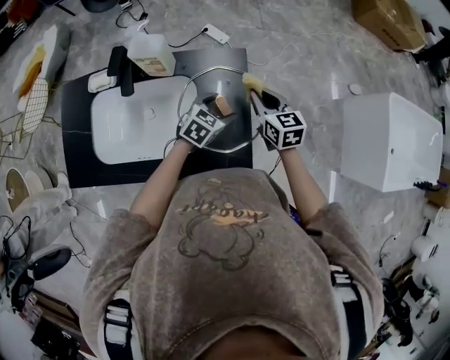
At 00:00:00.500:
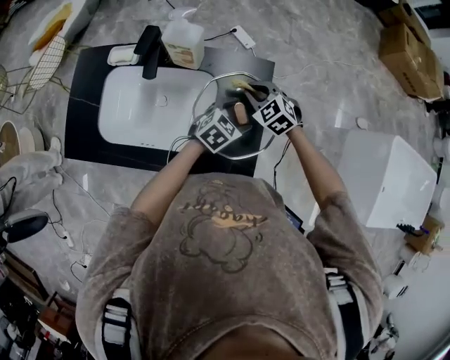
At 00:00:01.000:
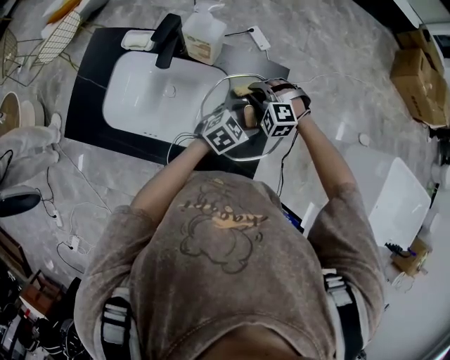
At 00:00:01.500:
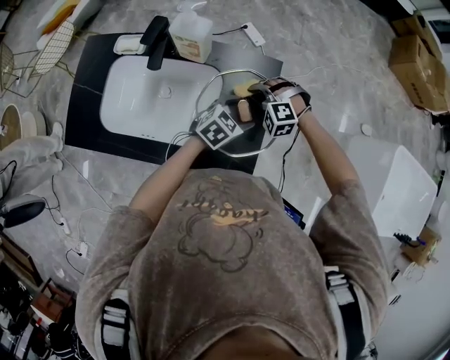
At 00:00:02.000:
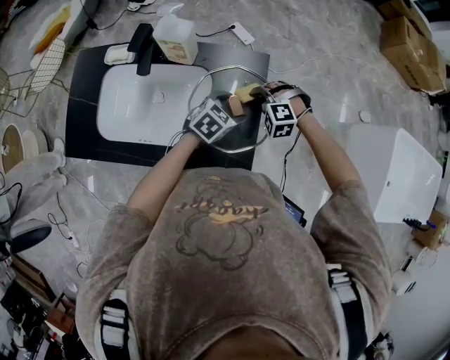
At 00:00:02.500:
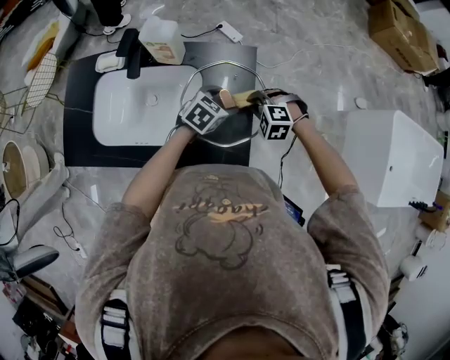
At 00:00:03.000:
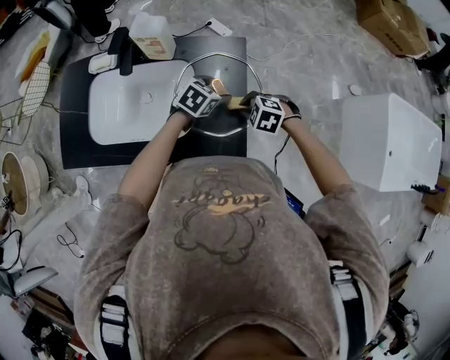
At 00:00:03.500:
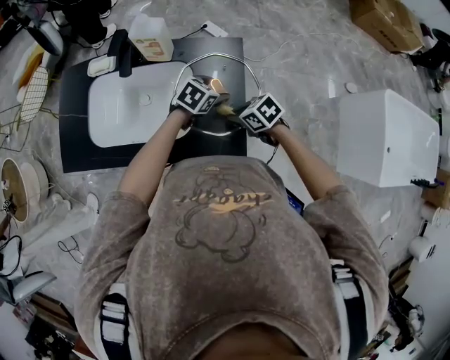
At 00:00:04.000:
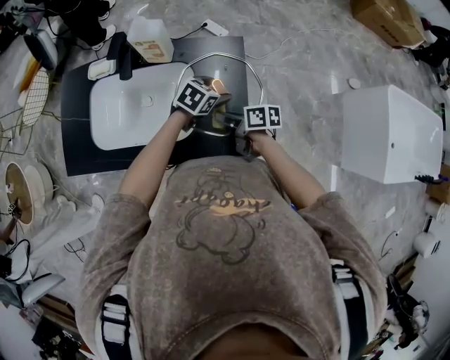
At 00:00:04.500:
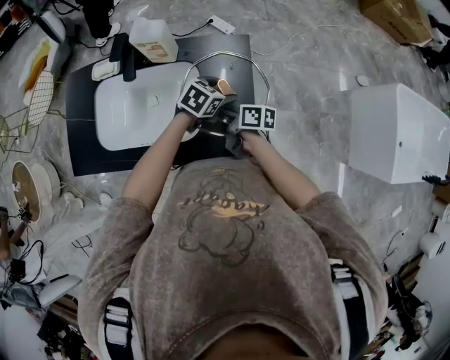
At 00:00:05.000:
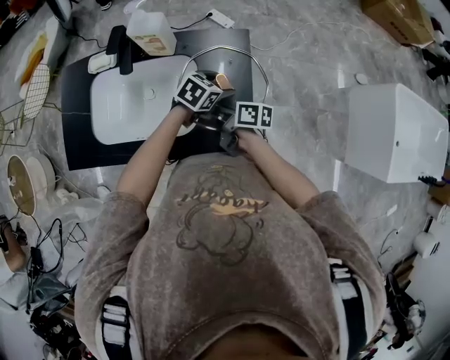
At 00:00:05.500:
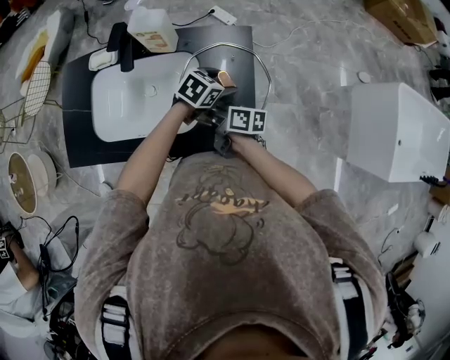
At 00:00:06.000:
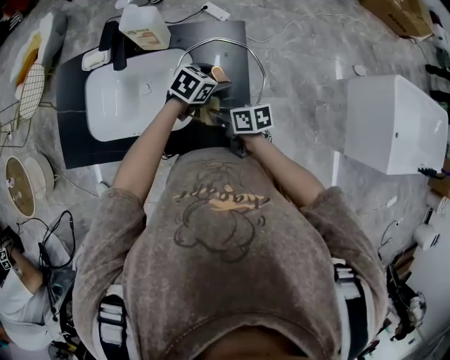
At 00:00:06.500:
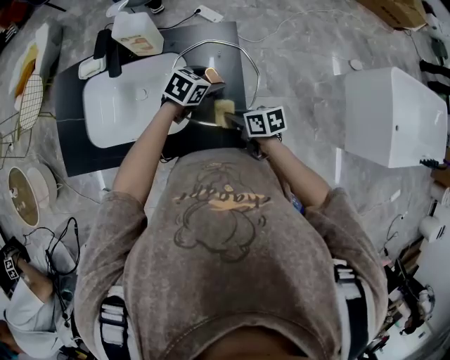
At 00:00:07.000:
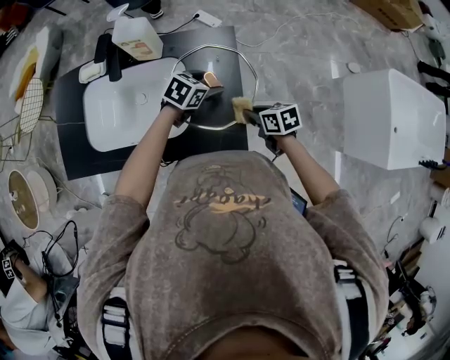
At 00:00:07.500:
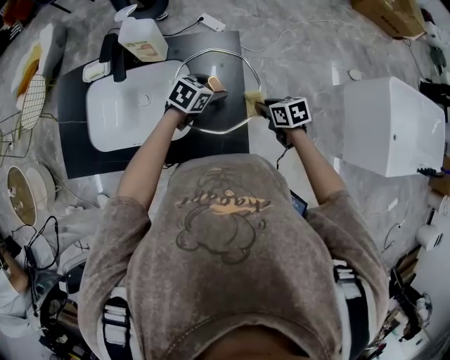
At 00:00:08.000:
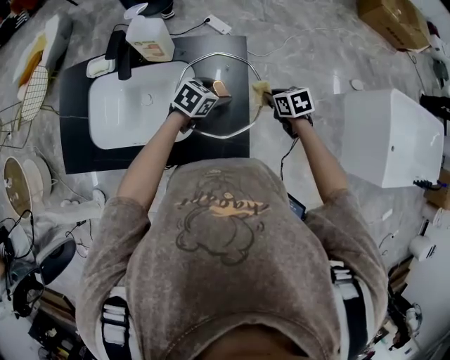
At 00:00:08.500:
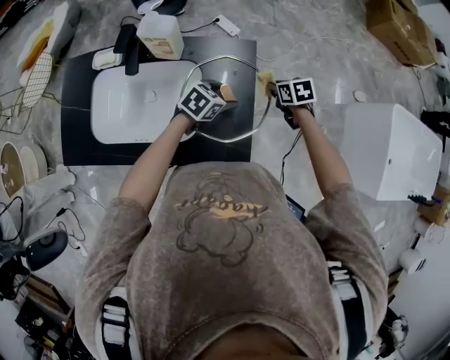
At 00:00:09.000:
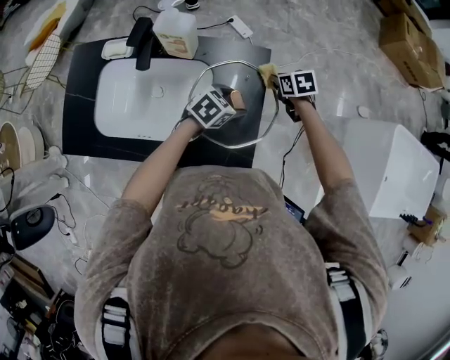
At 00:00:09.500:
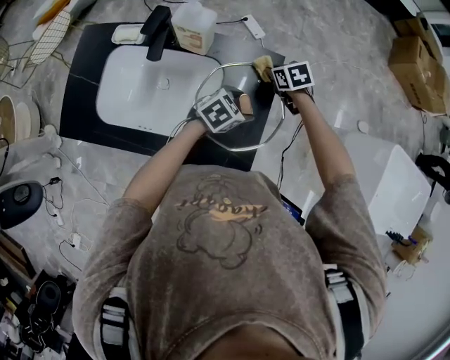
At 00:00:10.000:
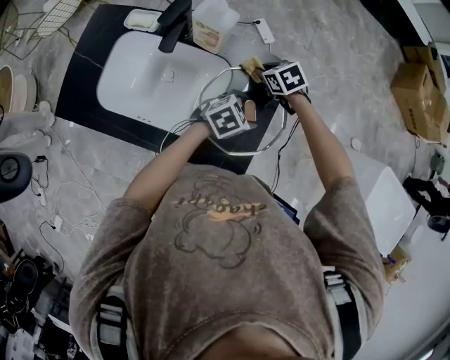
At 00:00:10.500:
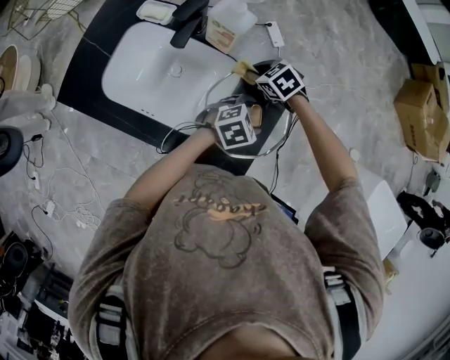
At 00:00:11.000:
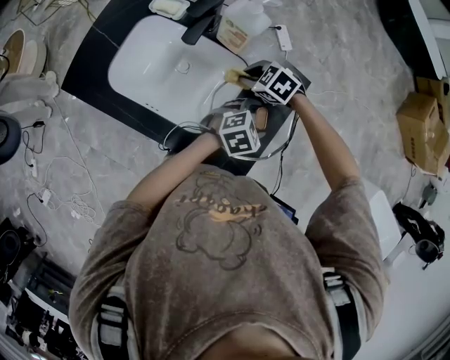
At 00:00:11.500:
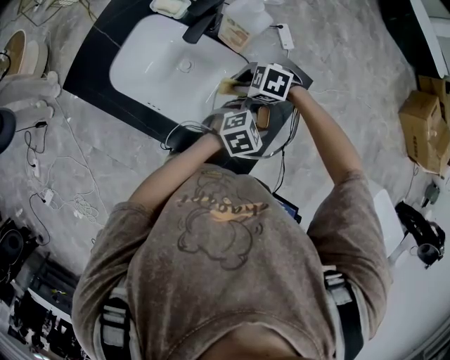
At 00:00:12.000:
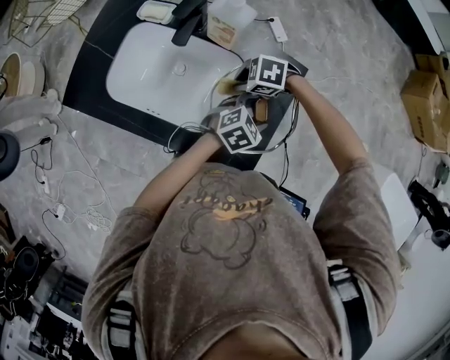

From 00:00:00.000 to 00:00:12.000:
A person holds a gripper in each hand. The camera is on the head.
From 00:00:00.000 to 00:00:02.000: The right gripper goes approximately 10 cm downward, and rolls counterclockwise, seen from behind, by approximately 90 degrees.
From 00:00:02.000 to 00:00:04.000: The right gripper shifts by approximately 10 cm, and rotates around the line of its fingers by about 120 degrees, clockwise from behind.
From 00:00:04.000 to 00:00:06.000: The grippers move only a little.
From 00:00:06.000 to 00:00:08.000: The right gripper ends up about 20 cm from where it was, and rotates about 30 degrees.
From 00:00:08.000 to 00:00:10.000: The right gripper moves about 25 cm, and turns by approximately 30 degrees.
From 00:00:10.000 to 00:00:12.000: The right gripper shifts by about 15 cm, and swivels about 60 degrees.

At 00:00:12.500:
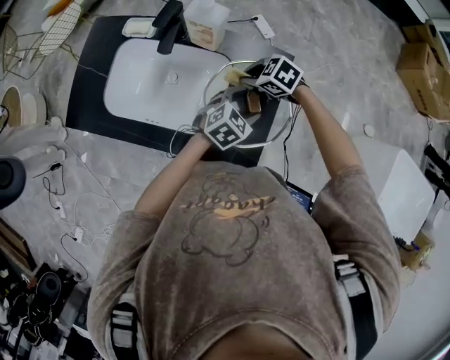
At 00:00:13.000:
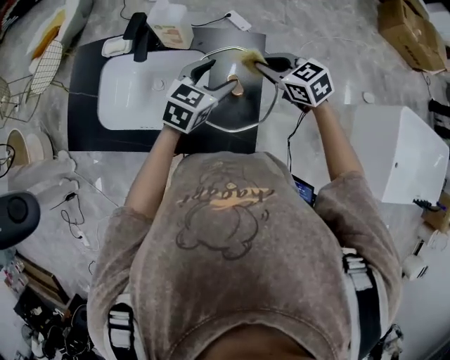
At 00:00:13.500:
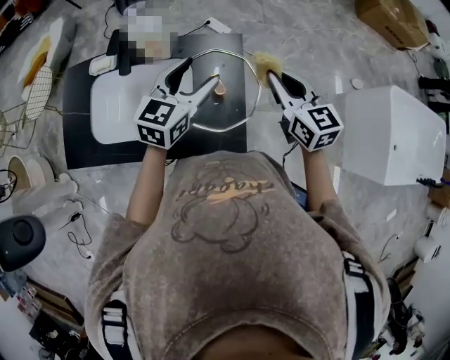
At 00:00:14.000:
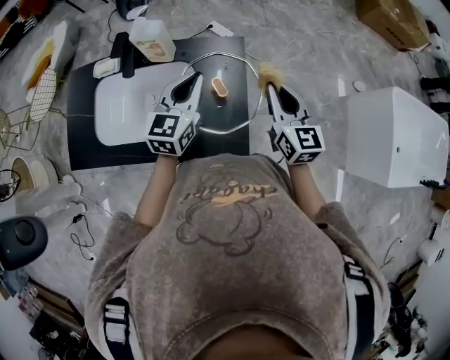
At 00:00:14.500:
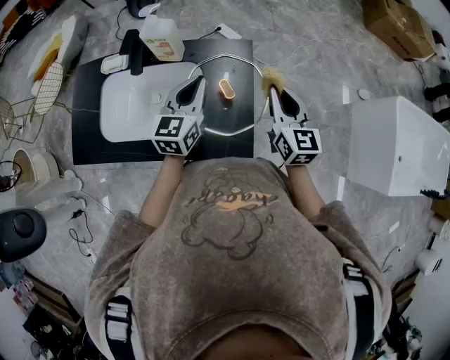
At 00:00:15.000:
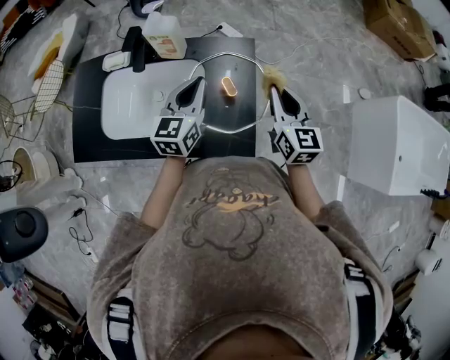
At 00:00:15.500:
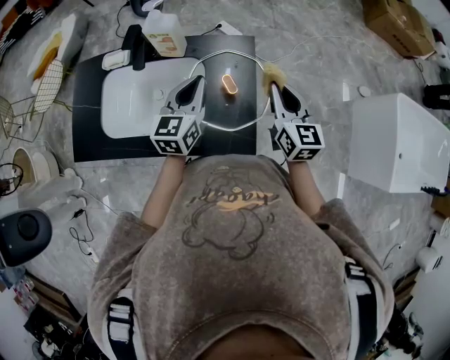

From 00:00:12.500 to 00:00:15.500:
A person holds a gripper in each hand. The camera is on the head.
From 00:00:12.500 to 00:00:14.000: The right gripper changes place by some 30 cm, and points its fingers roughly 50 degrees further upward; the left gripper moves upward, about 15 cm, tilts its fingers approximately 30 degrees upward, and closes up.
From 00:00:14.000 to 00:00:15.500: The grippers move only a little.

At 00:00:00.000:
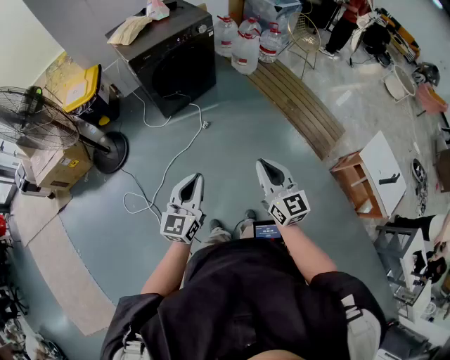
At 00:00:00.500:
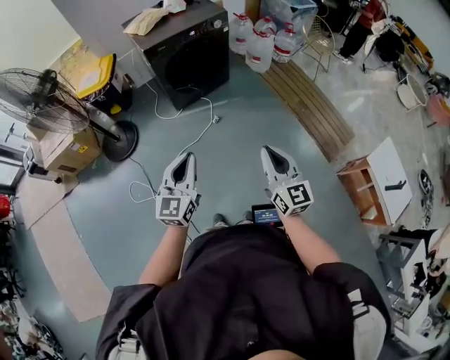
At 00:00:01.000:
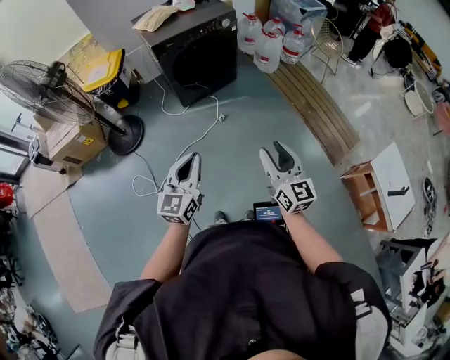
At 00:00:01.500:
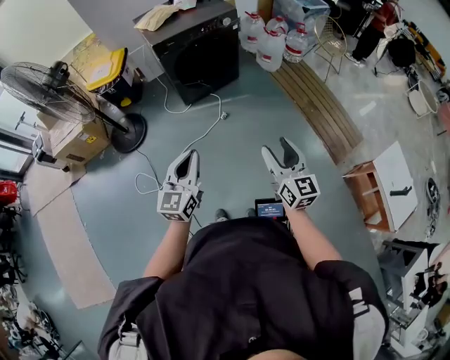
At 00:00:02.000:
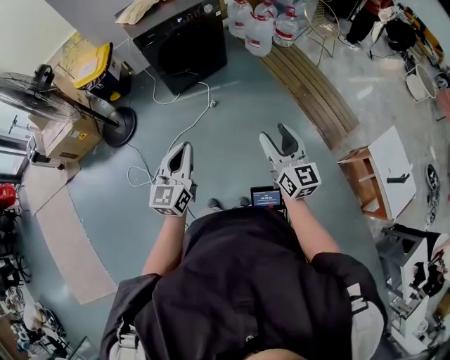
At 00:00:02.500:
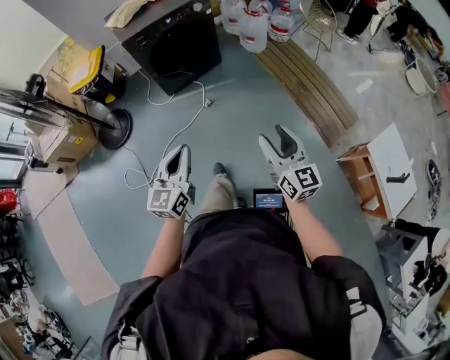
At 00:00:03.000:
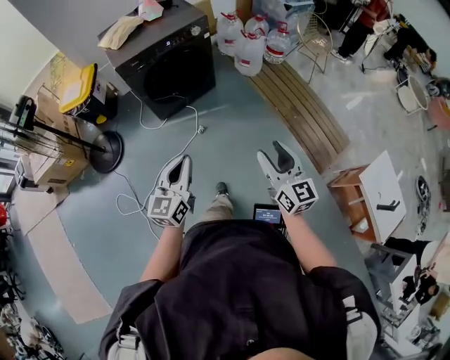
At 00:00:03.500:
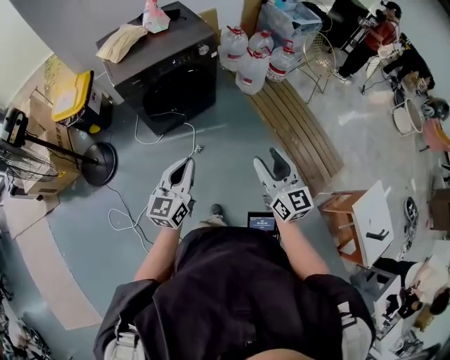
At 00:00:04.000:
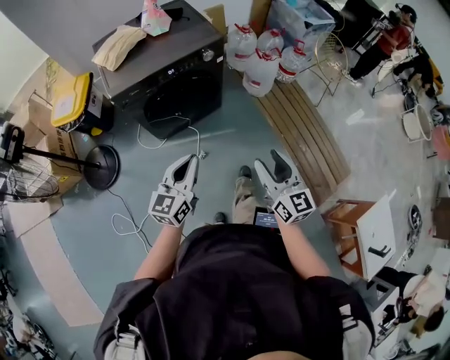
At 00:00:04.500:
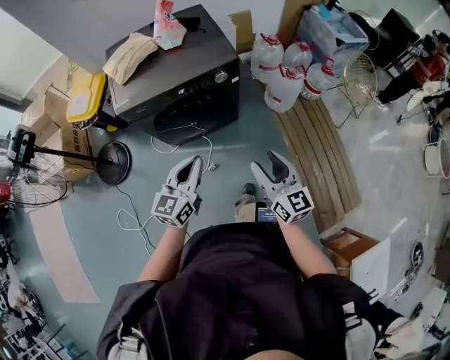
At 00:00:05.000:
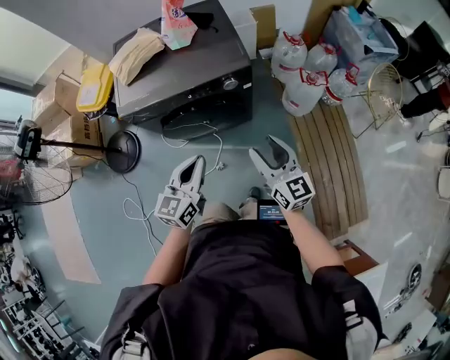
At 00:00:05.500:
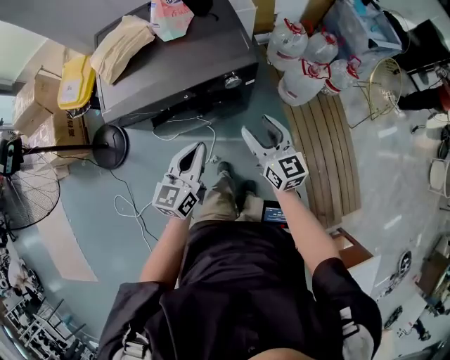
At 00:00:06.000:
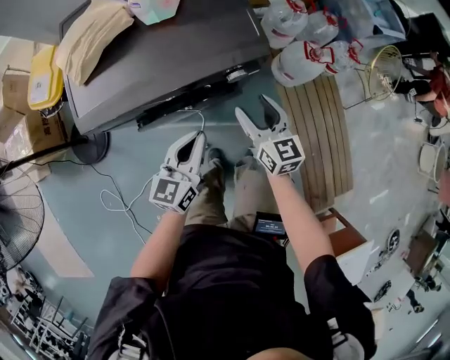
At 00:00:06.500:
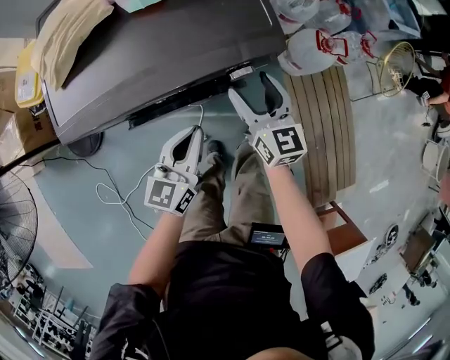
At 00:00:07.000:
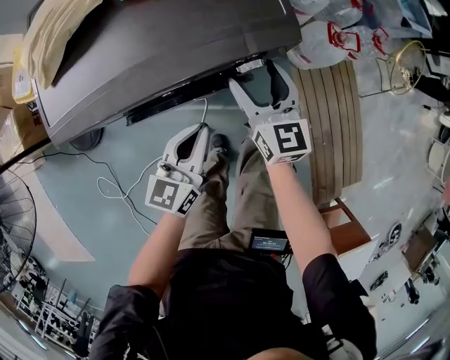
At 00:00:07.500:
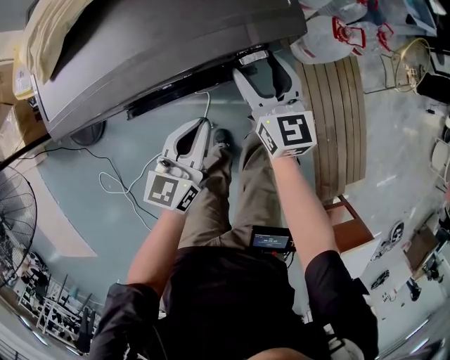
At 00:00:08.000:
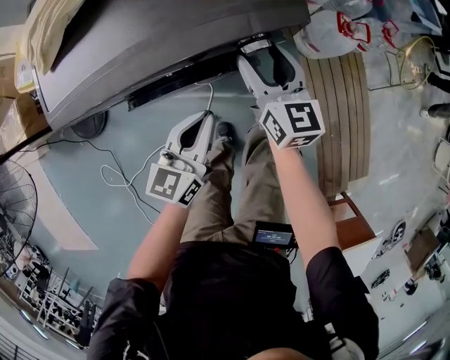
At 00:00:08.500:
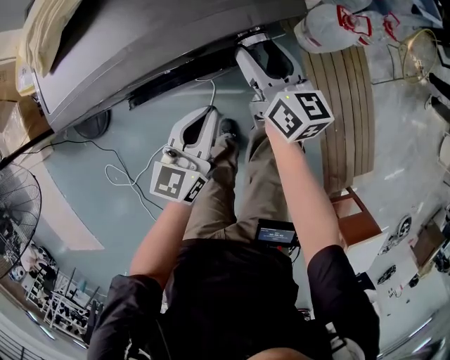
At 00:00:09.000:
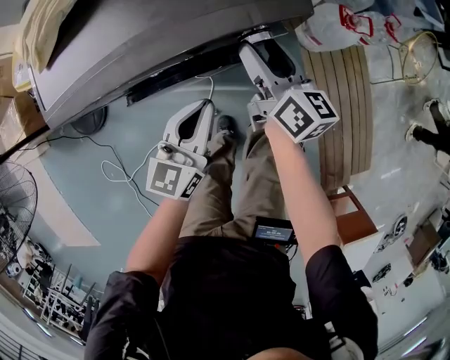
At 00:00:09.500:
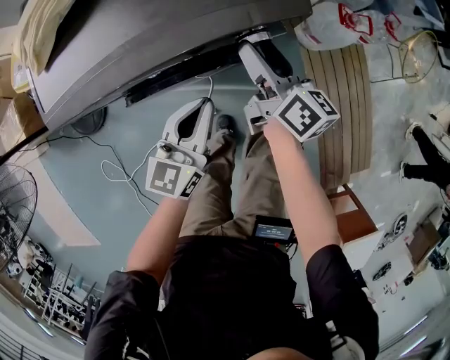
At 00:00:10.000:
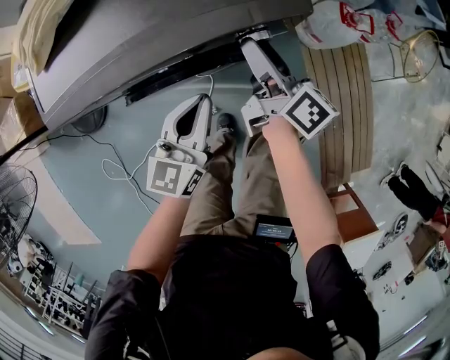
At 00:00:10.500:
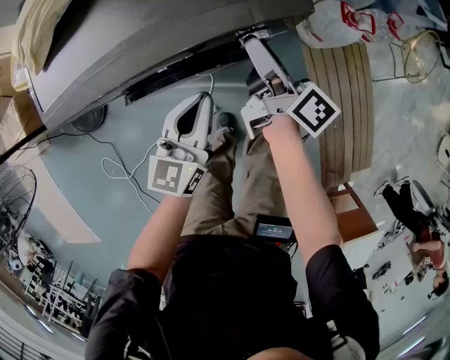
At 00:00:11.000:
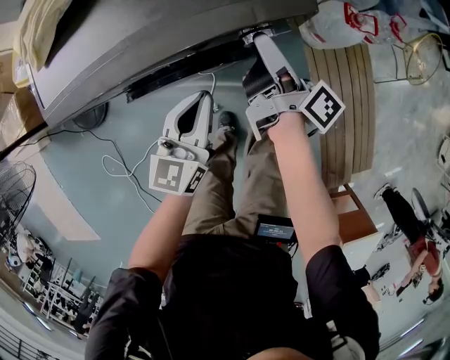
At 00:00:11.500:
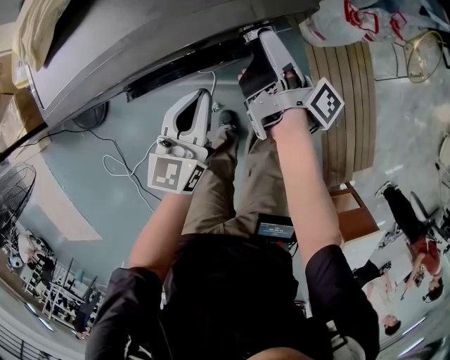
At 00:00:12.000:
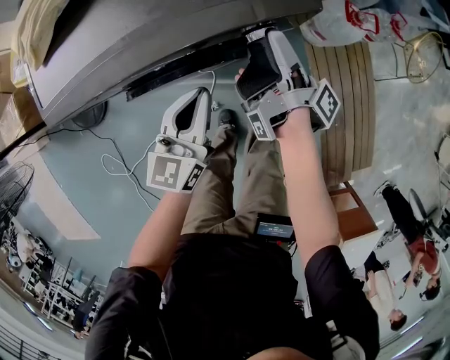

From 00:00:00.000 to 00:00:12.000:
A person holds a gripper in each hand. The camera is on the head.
From 00:00:00.000 to 00:00:02.000: The right gripper moves to the right, about 10 cm, and opens up.
From 00:00:02.000 to 00:00:04.000: The pair of grippers is taken forward, some 40 cm.
From 00:00:04.000 to 00:00:06.000: Both grippers travel together forward, some 40 cm.
From 00:00:06.000 to 00:00:08.000: The left gripper is displaced downward by about 10 cm. Meanwhile the right gripper shifts roughly 10 cm forward and downward.
From 00:00:08.000 to 00:00:10.000: The right gripper twists about 40 degrees clockwise, seen from behind.
From 00:00:10.000 to 00:00:12.000: The right gripper rolls clockwise, seen from behind, by about 50 degrees.
